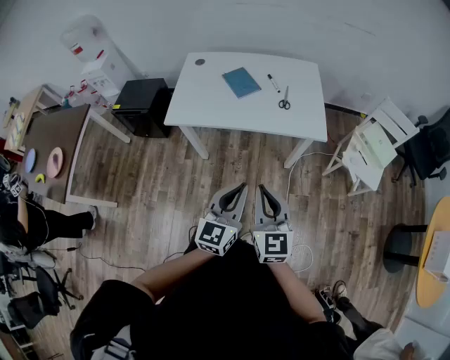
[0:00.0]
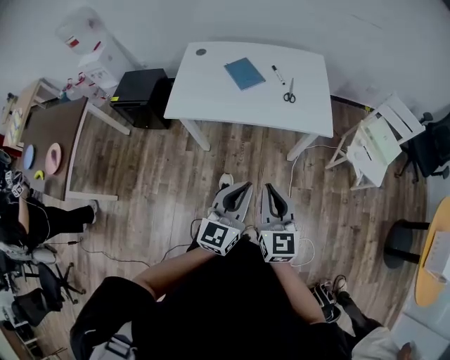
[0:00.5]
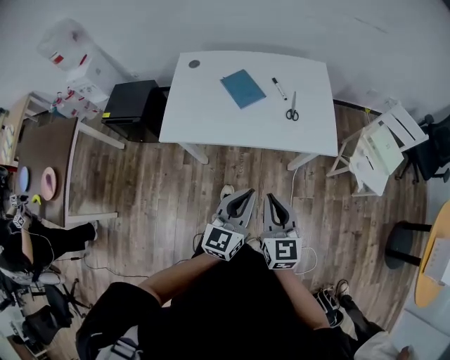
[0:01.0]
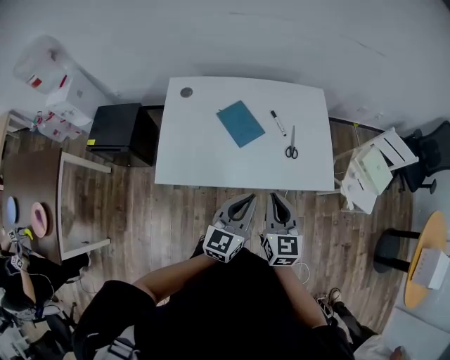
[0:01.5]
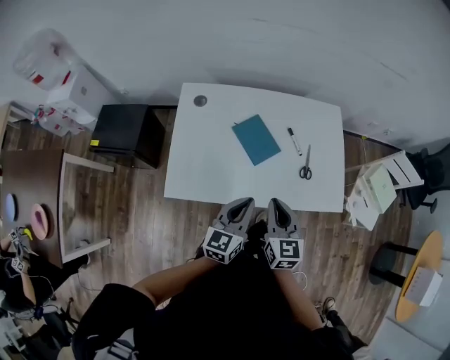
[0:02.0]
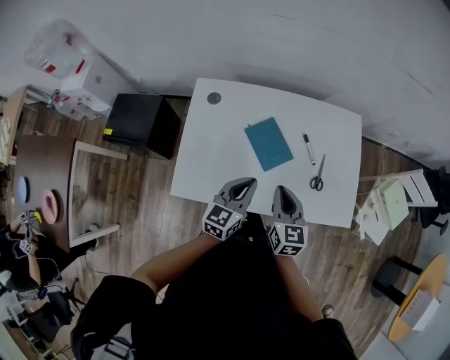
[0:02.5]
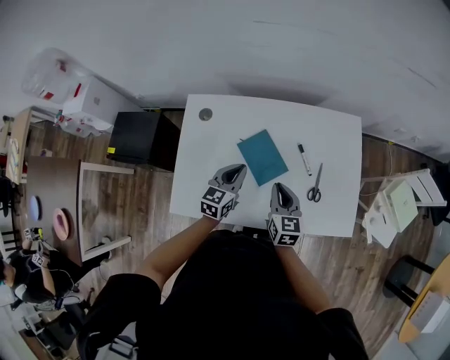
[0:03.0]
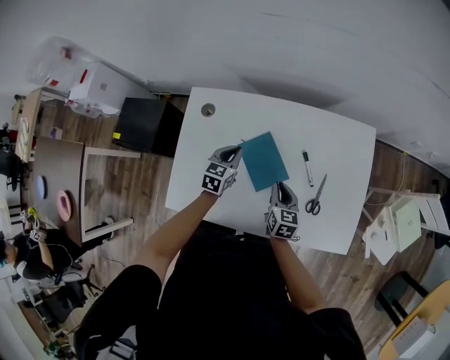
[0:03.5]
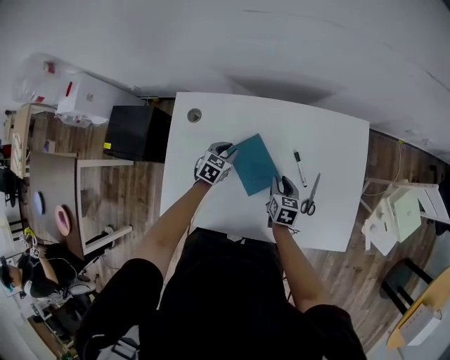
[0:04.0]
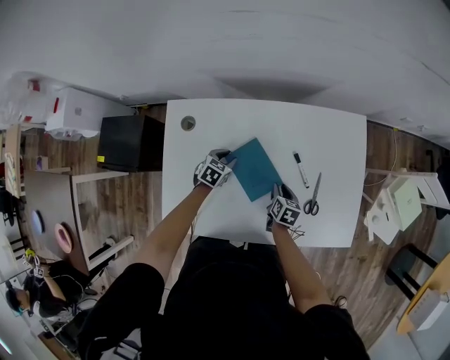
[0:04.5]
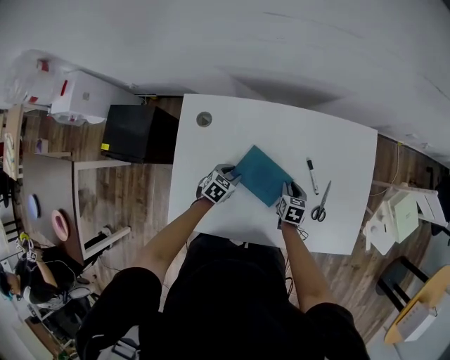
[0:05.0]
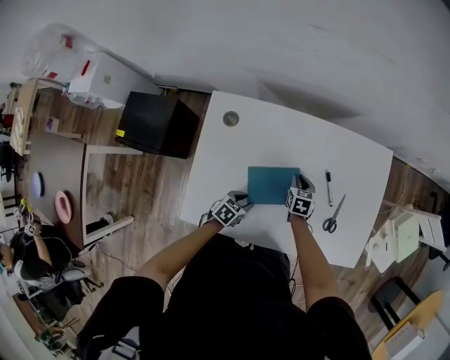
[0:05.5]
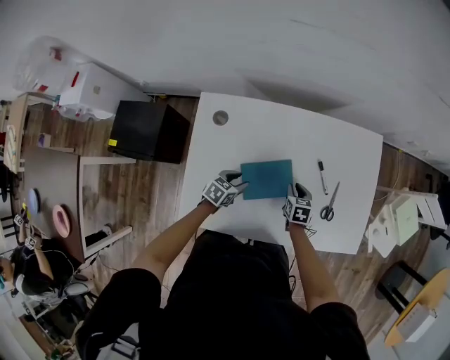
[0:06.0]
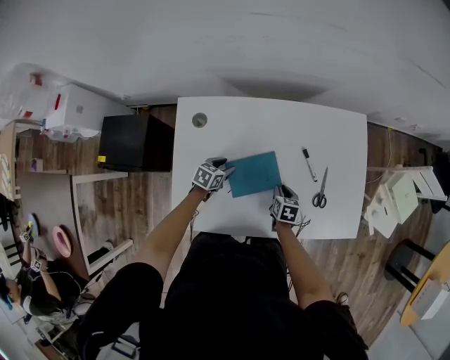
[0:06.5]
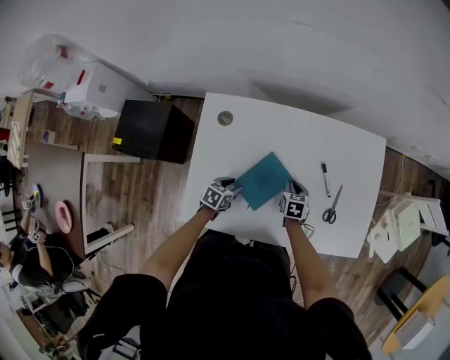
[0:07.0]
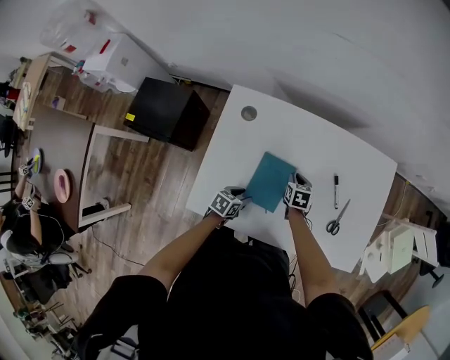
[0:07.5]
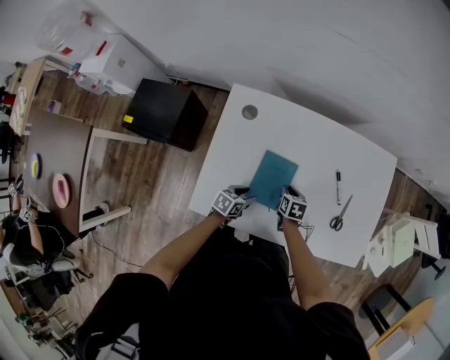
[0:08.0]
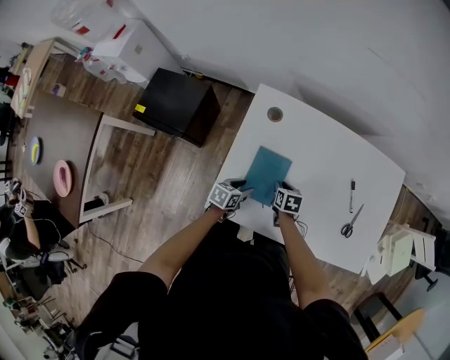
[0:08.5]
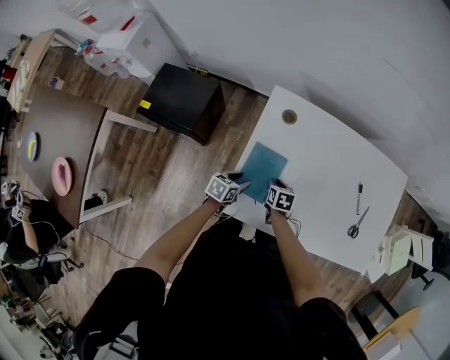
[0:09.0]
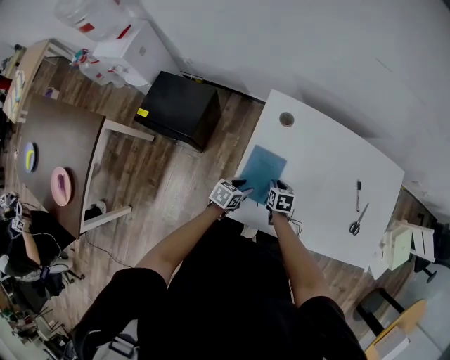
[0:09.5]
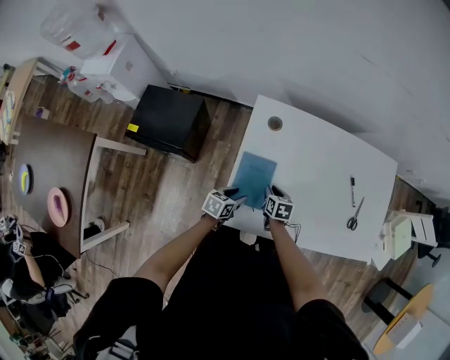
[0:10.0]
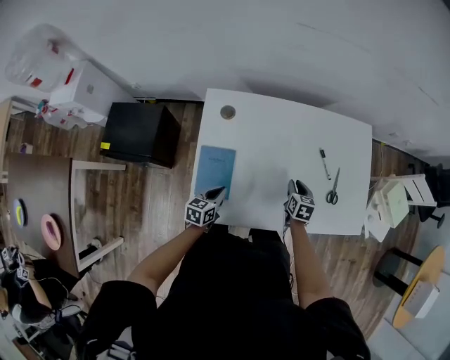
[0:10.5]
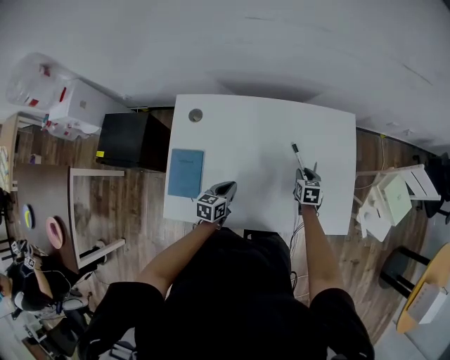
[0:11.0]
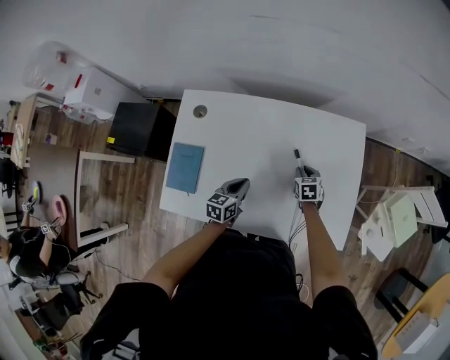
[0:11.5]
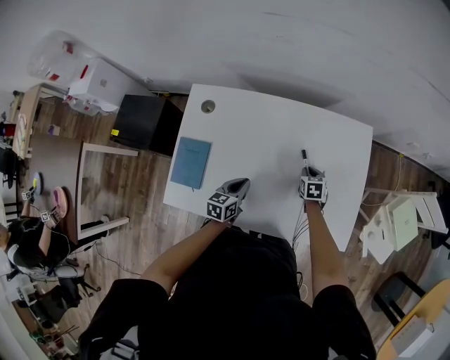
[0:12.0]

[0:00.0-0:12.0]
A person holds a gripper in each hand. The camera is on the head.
0:00.0 to 0:02.0: Both grippers are carried forward and to the left, roughly 40 cm.
0:02.0 to 0:04.0: Both grippers move forward and downward, approximately 40 cm. The left gripper angles its fingers downward, by approximately 40 degrees. The right gripper turns by roughly 30 degrees.
0:04.0 to 0:06.0: The left gripper heads backward, covering some 10 cm.
0:06.0 to 0:08.0: The left gripper is displaced backward by approximately 10 cm, while the right gripper is displaced to the left by approximately 10 cm.
0:08.0 to 0:10.0: Both grippers travel together to the left, approximately 20 cm.
0:10.0 to 0:12.0: The two grippers go some 35 cm to the right and forward. The left gripper closes.

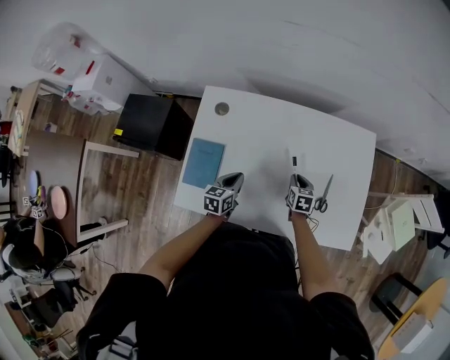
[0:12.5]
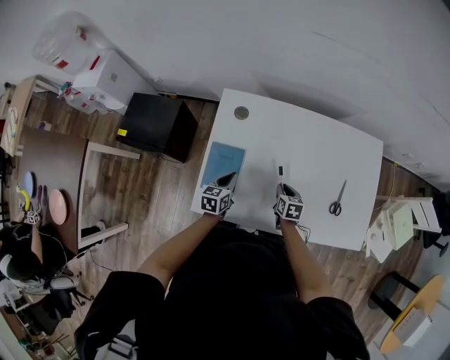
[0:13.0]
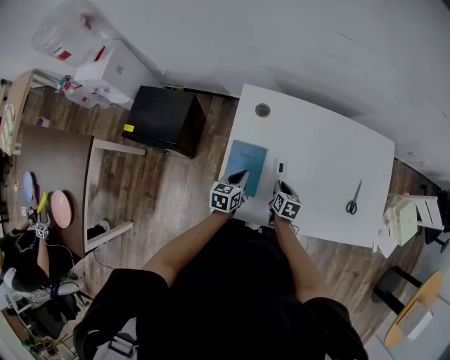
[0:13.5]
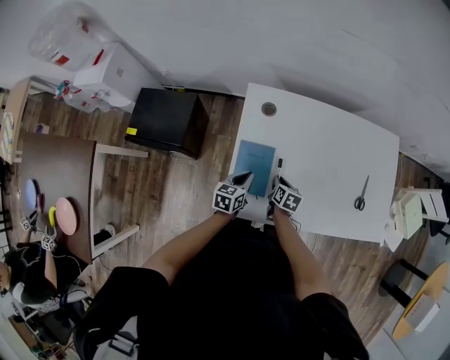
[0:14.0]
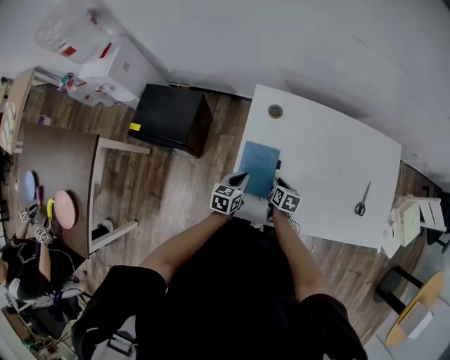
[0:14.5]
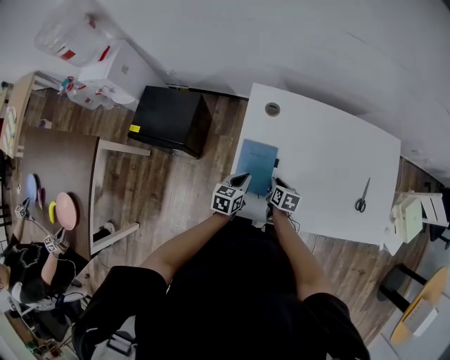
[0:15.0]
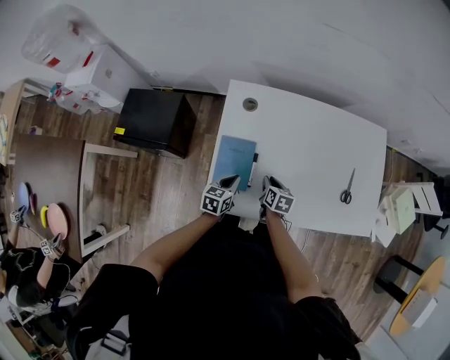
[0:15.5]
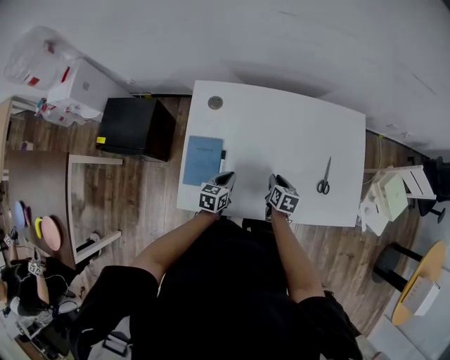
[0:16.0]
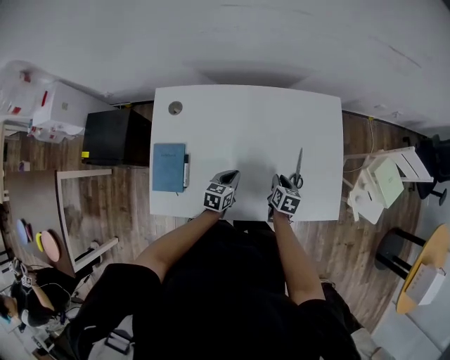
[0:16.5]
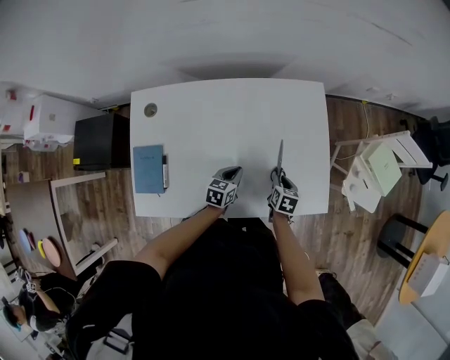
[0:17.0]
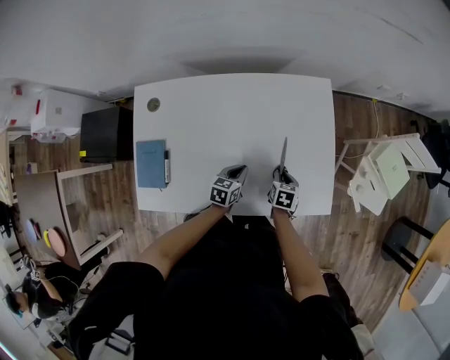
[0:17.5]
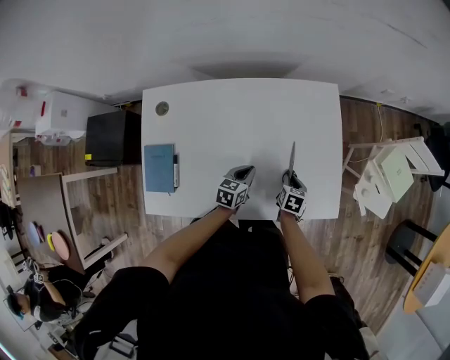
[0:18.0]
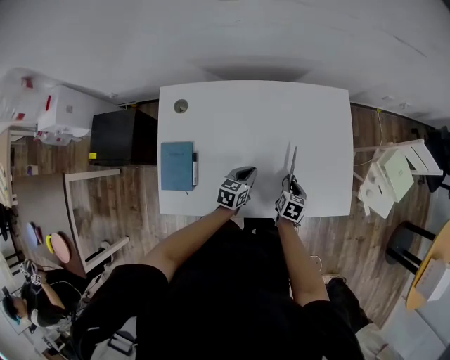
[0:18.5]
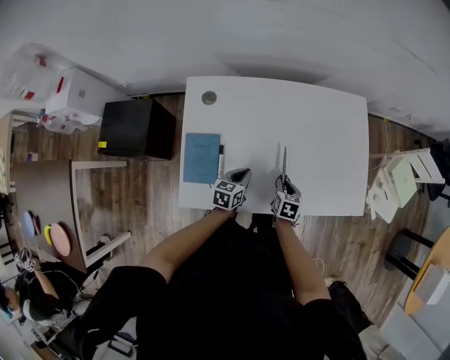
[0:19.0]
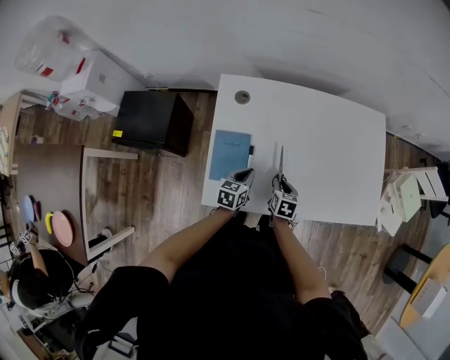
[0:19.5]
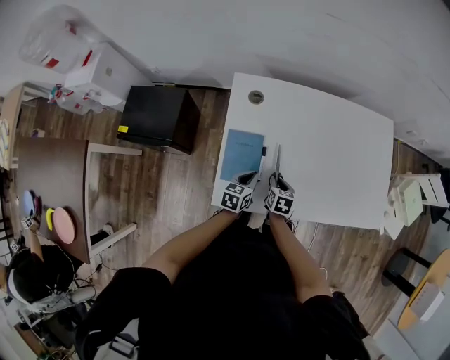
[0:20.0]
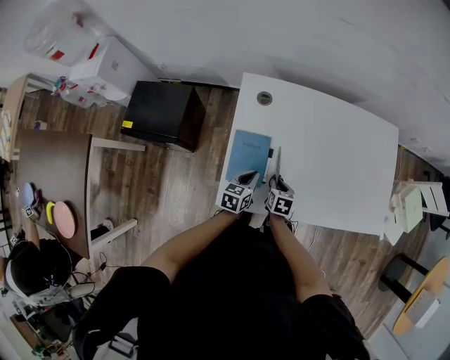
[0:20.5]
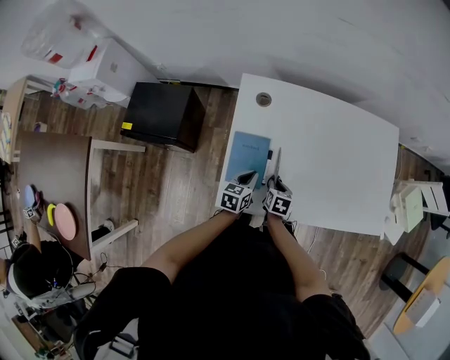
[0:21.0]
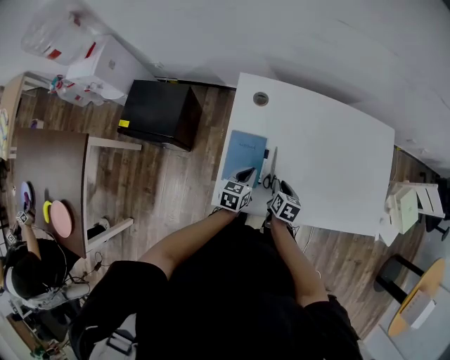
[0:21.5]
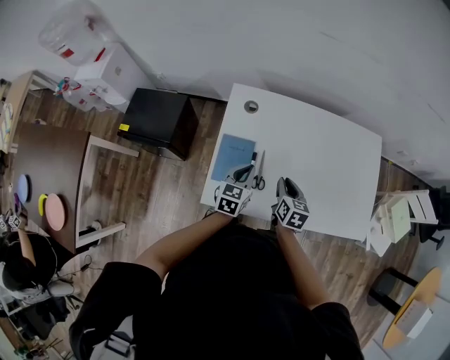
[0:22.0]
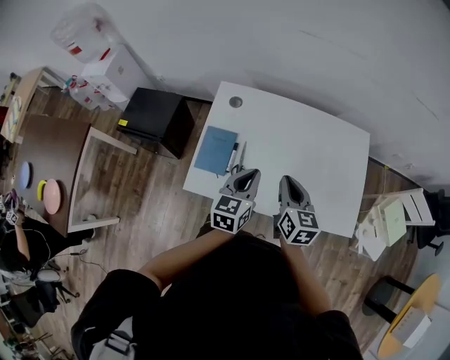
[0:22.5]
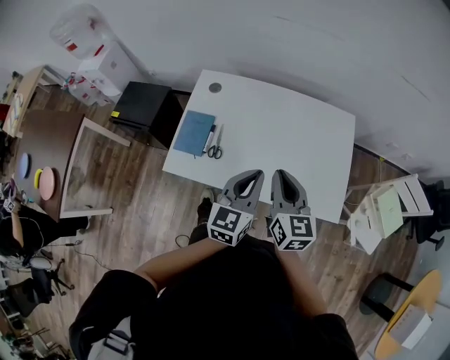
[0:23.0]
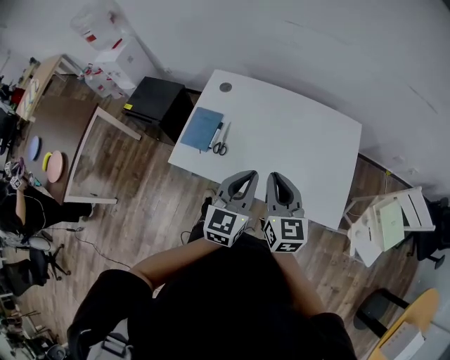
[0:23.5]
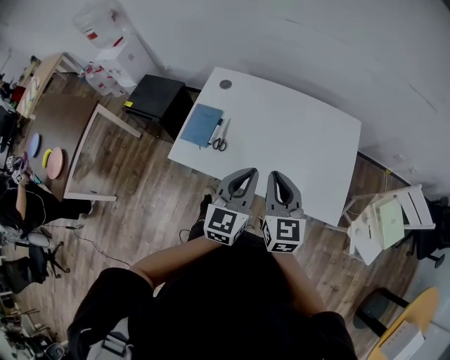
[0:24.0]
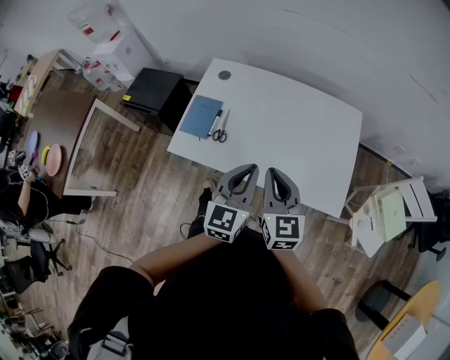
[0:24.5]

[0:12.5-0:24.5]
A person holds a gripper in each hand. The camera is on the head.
0:12.5 to 0:14.5: The grippers both shift to the left by roughly 25 cm.
0:14.5 to 0:16.5: Both grippers travel together to the right, approximately 35 cm.
0:16.5 to 0:18.5: The left gripper travels to the right and back again, roughly 10 cm each way; the right gripper travels to the right and back again, some 10 cm each way.
0:18.5 to 0:20.5: The left gripper is displaced to the left and backward by some 30 cm; the right gripper goes roughly 30 cm to the left.
0:20.5 to 0:22.5: Both grippers move upward and to the right, approximately 30 cm. The right gripper tilts its fingers roughly 40 degrees upward; the left gripper turns by about 20 degrees.
0:22.5 to 0:24.5: The right gripper heads backward and to the right, covering roughly 15 cm, while the left gripper moves backward, to the right and upward, some 20 cm.

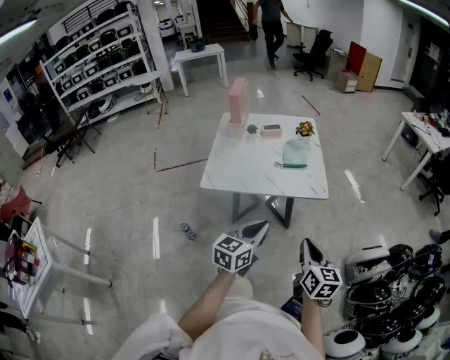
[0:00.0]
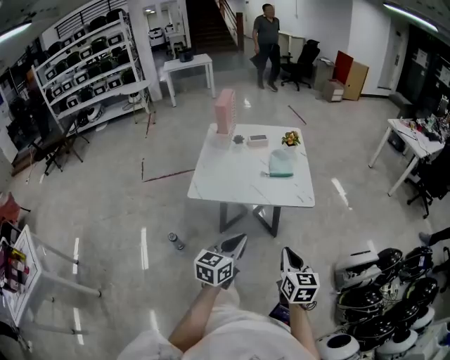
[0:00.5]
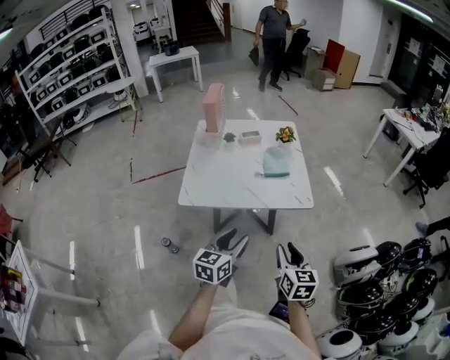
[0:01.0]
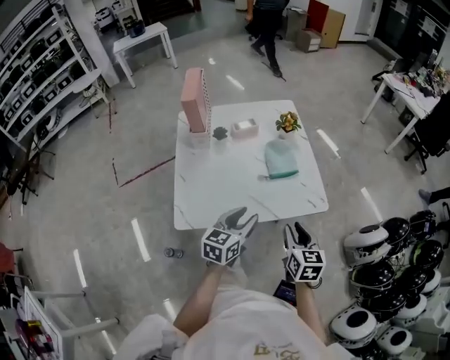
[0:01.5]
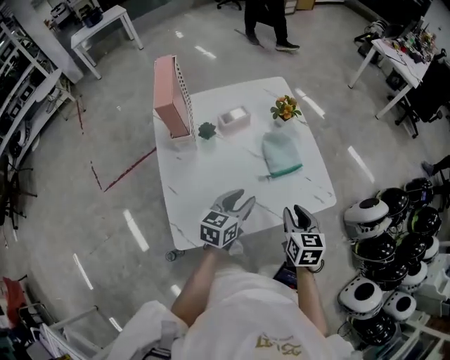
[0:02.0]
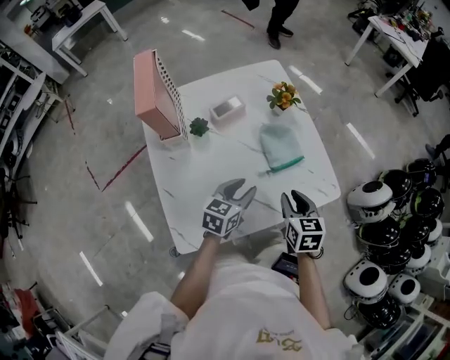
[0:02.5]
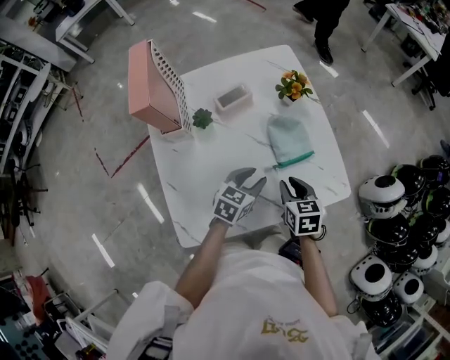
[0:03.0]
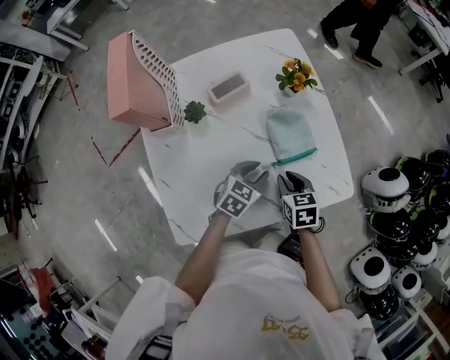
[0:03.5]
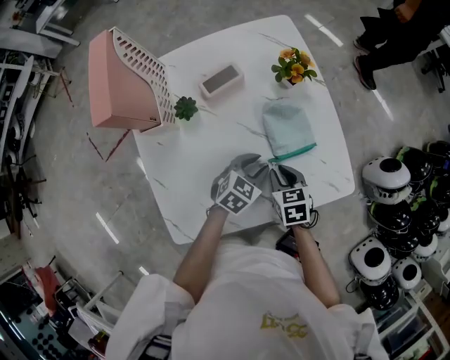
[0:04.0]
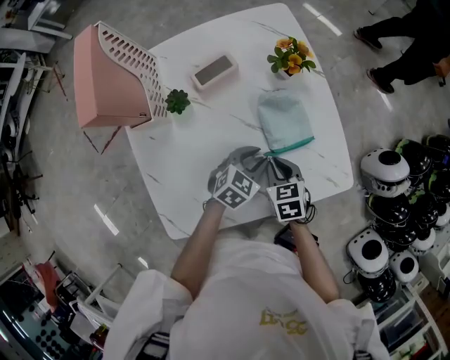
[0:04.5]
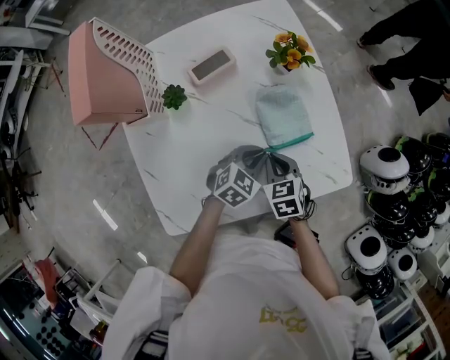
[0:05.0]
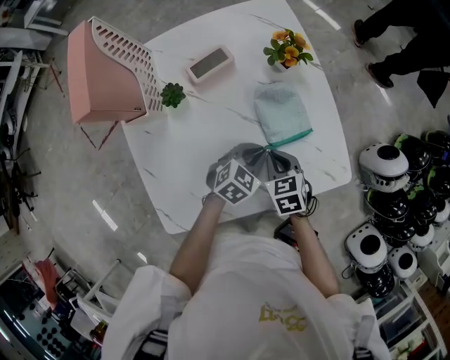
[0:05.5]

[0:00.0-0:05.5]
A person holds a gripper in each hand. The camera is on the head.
0:00.0 to 0:02.0: Both grippers travel together forward and to the left, about 40 cm. The left gripper swivels some 20 degrees, and opens up; the right gripper rotates approximately 30 degrees, and opens up.
0:02.0 to 0:03.5: Both grippers move downward and forward, roughly 15 cm. The left gripper changes its angle by approximately 30 degrees.
0:03.5 to 0:05.5: The left gripper closes its fingers, while the right gripper closes up.
